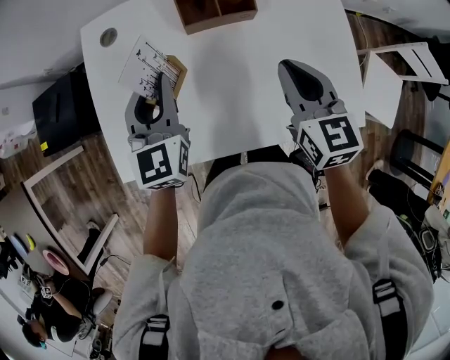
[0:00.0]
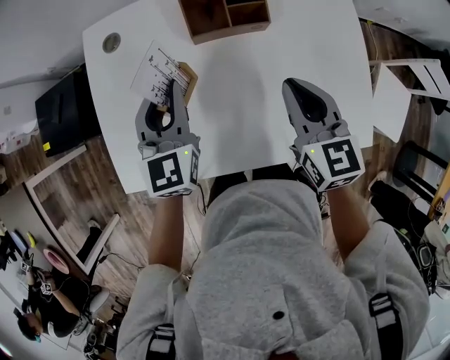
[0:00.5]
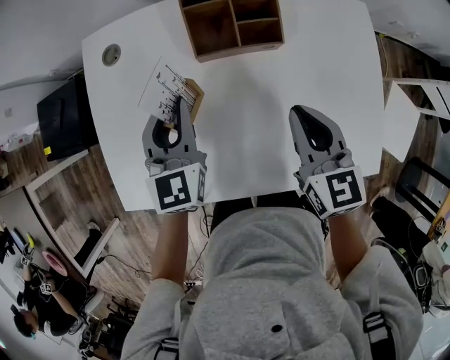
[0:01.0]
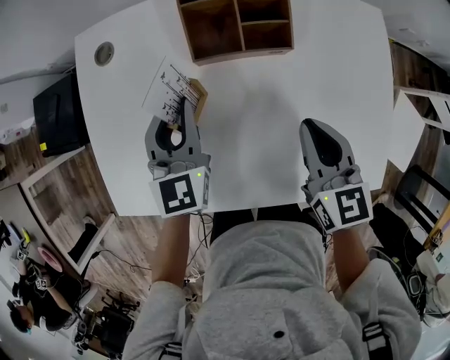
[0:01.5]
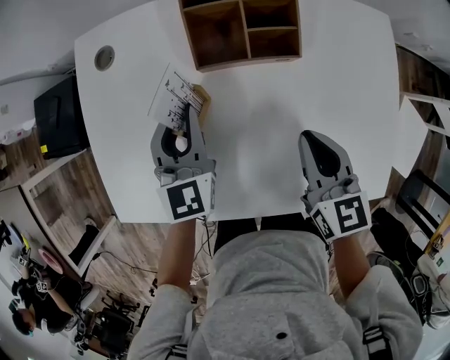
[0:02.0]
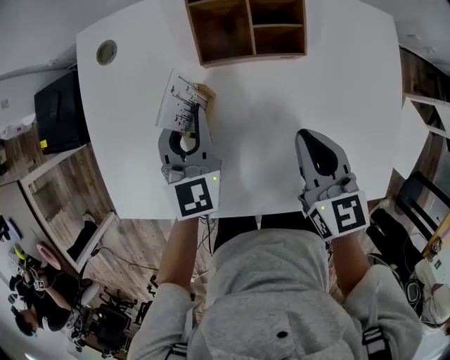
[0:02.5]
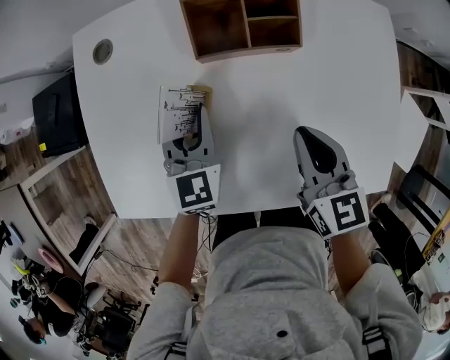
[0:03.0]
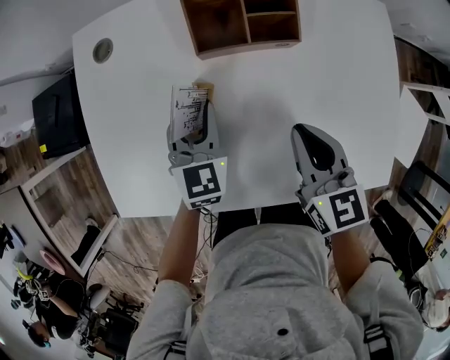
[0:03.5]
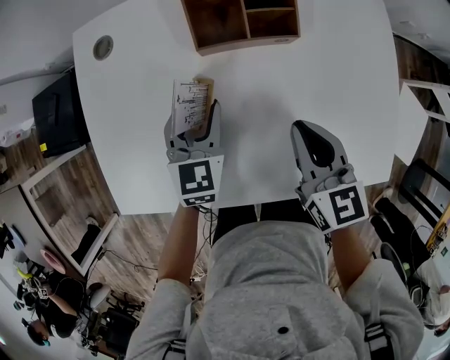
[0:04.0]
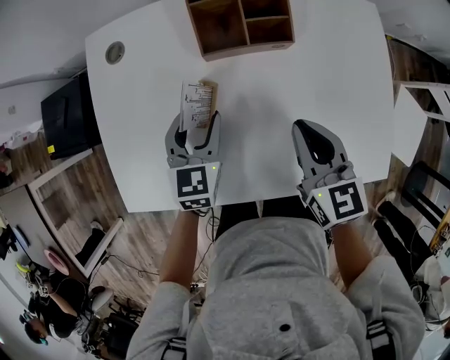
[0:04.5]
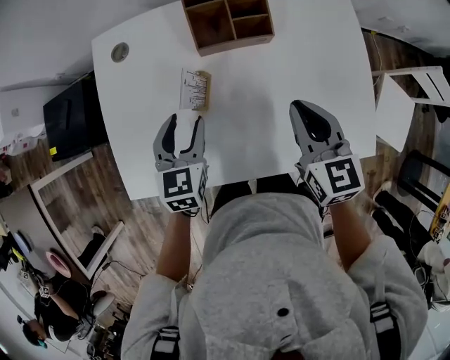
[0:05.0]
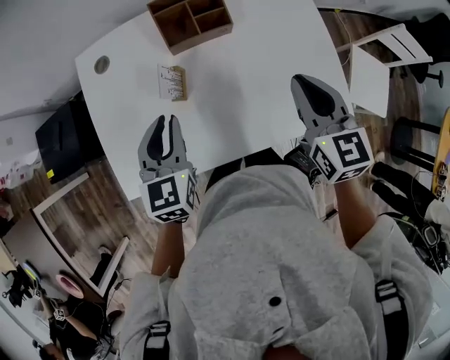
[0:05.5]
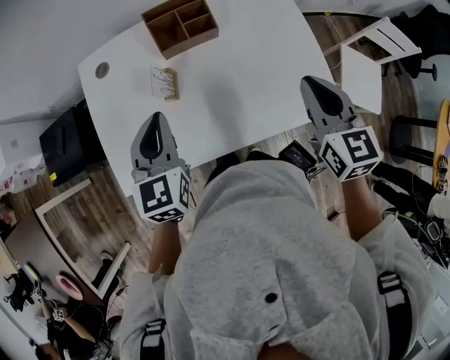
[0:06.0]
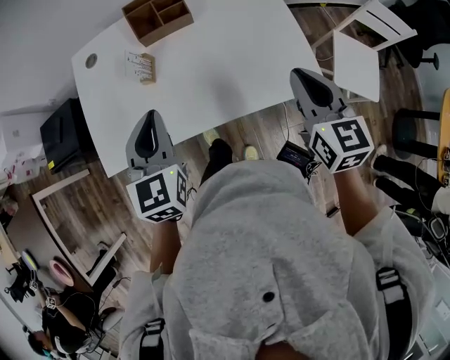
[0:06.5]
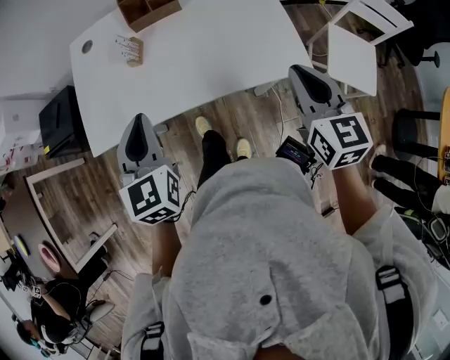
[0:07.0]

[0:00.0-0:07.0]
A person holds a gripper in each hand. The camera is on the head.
0:00.0 to 0:02.0: The right gripper travels downward by some 10 cm. The left gripper travels downward and forward by about 15 cm.
0:02.0 to 0:03.5: The left gripper heads downward, covering roughly 5 cm.
0:03.5 to 0:05.0: The right gripper goes approximately 10 cm upward. The left gripper is displaced backward and upward by some 10 cm, and opens its fingers.
0:05.0 to 0:07.0: The left gripper goes roughly 30 cm backward, upward and to the right, and closes; the right gripper travels backward and to the right by some 30 cm.

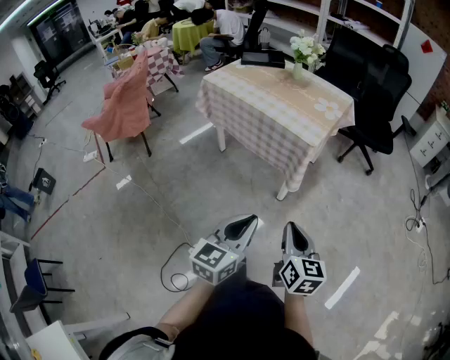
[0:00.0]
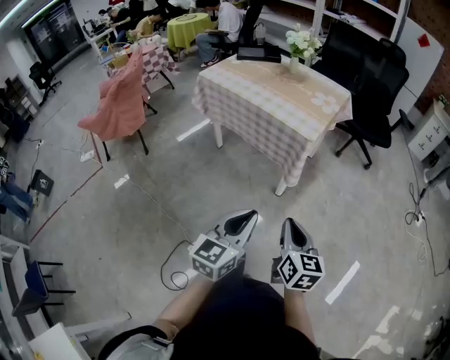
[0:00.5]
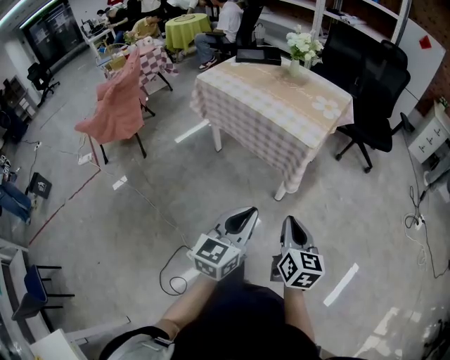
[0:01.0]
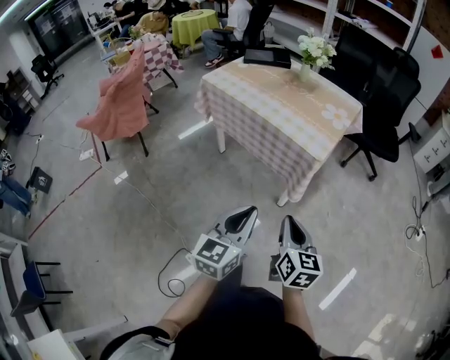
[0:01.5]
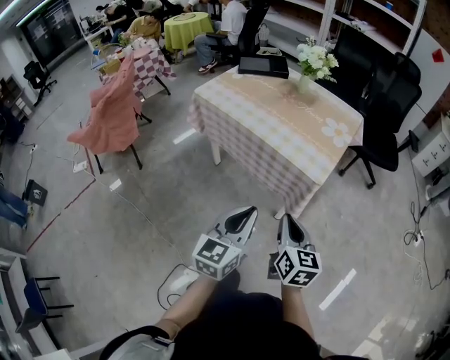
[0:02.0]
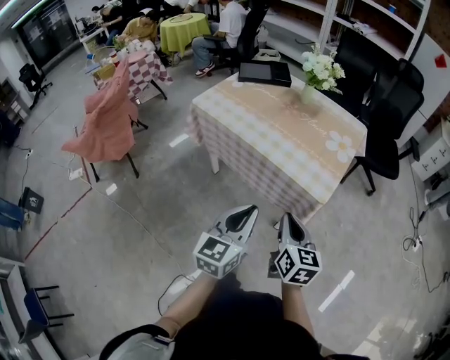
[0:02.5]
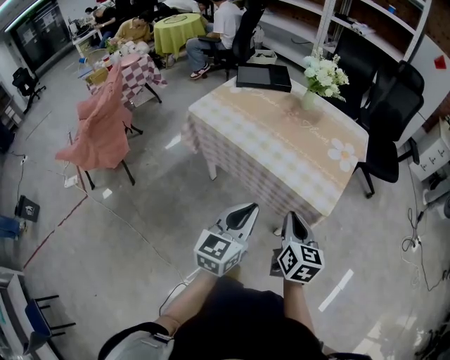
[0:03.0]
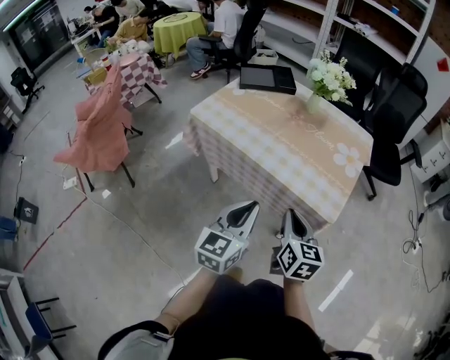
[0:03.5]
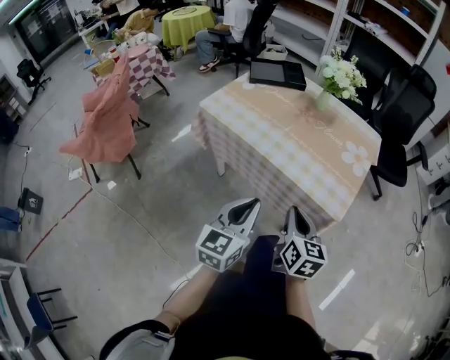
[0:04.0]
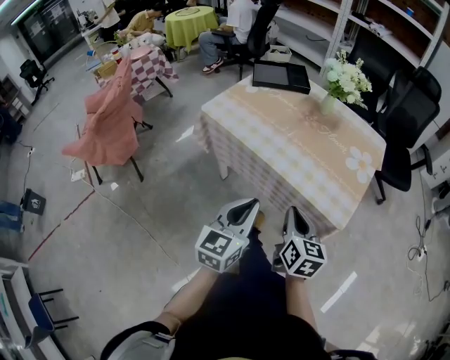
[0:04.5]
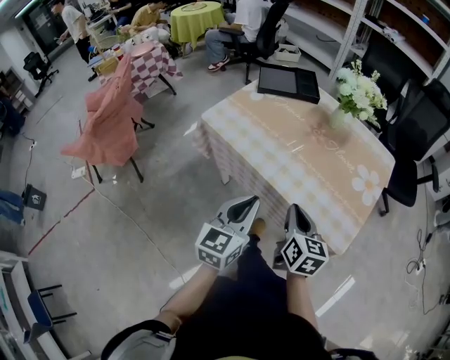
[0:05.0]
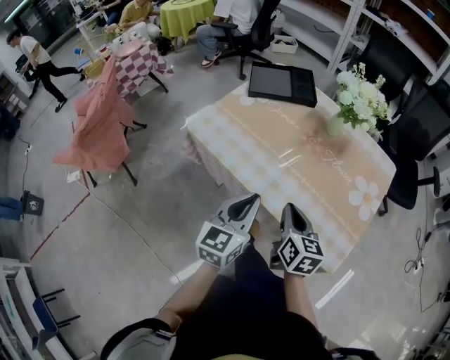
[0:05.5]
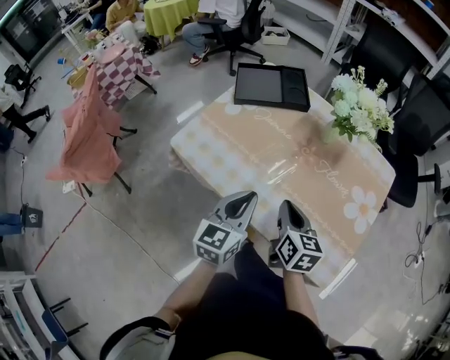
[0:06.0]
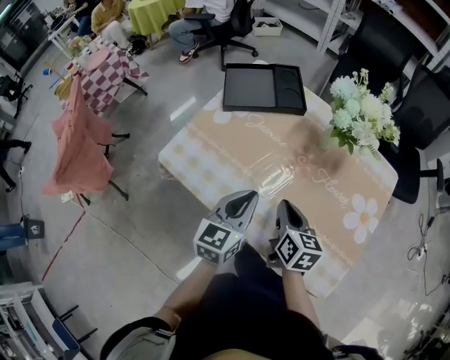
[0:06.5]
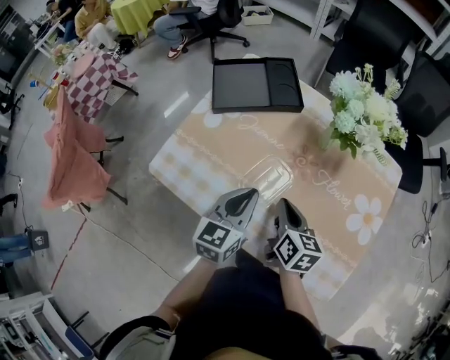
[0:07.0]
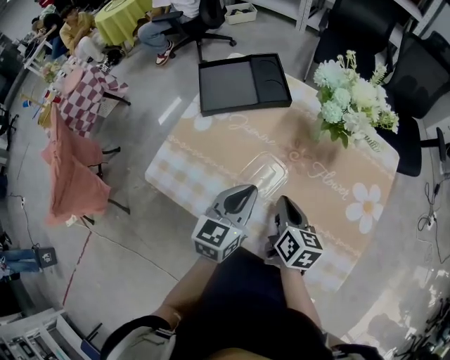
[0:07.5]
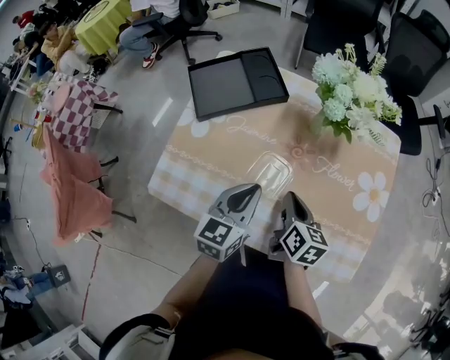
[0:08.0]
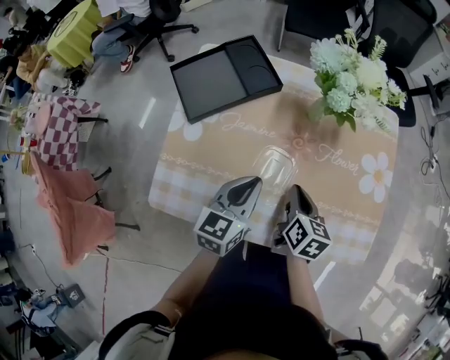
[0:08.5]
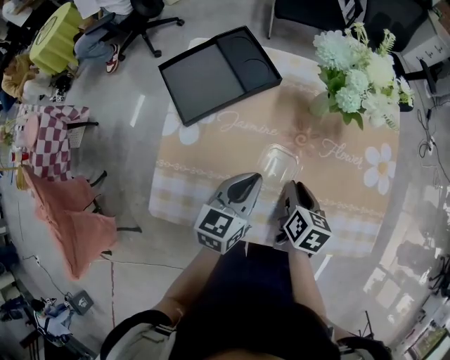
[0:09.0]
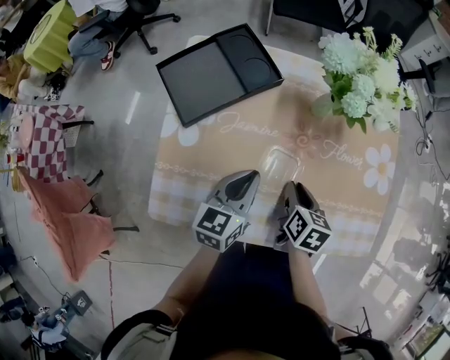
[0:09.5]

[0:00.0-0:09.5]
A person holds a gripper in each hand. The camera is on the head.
0:00.0 to 0:02.0: Both grippers travel together forward, some 20 cm.
0:02.0 to 0:04.0: Both grippers move forward and to the left, approximately 20 cm.
0:04.0 to 0:05.5: The grippers both shift forward by about 20 cm.
0:05.5 to 0:07.5: Both grippers travel together forward, roughly 20 cm.
0:07.5 to 0:09.5: The left gripper goes roughly 5 cm to the left. The right gripper travels downward by roughly 5 cm, and turns by approximately 30 degrees.

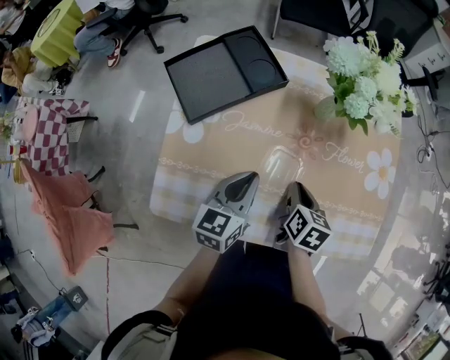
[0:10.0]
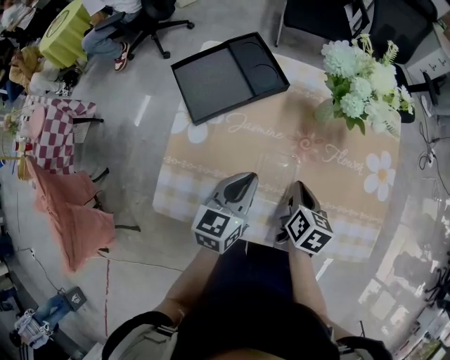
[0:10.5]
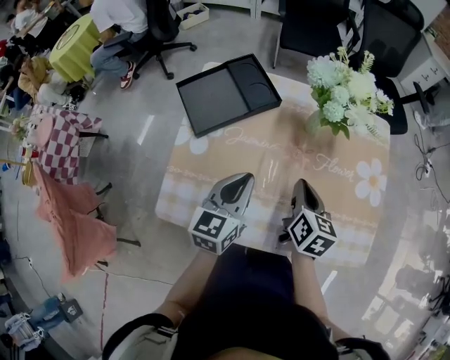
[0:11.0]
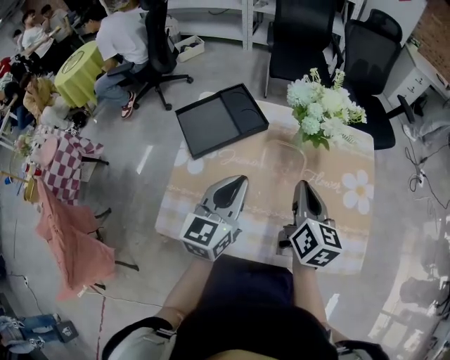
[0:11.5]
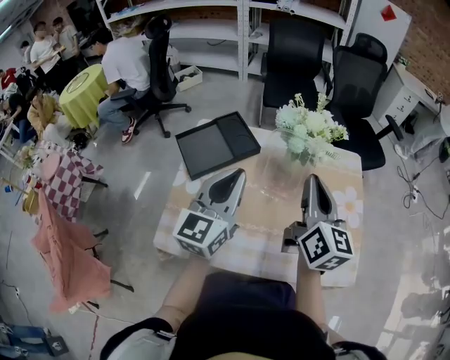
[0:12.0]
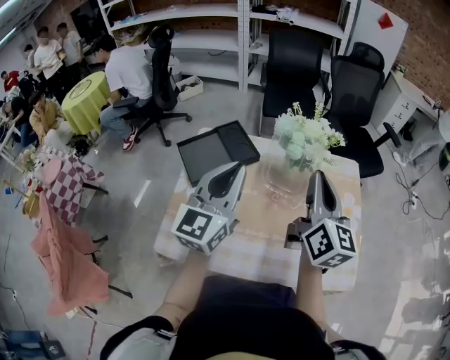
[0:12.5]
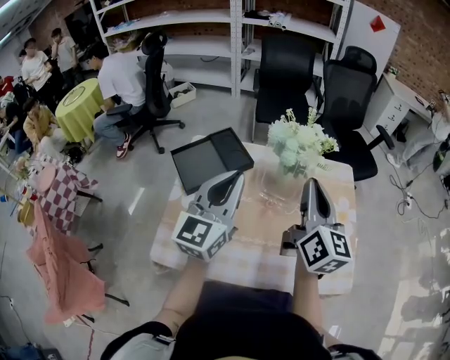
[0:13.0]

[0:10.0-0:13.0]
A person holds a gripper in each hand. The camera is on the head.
0:10.0 to 0:11.5: Both grippers travel together upward, some 15 cm. The right gripper tips its fingers upward by approximately 30 degrees.
0:11.5 to 0:13.0: Both grippers travel together upward, about 10 cm. The right gripper rotates some 20 degrees.

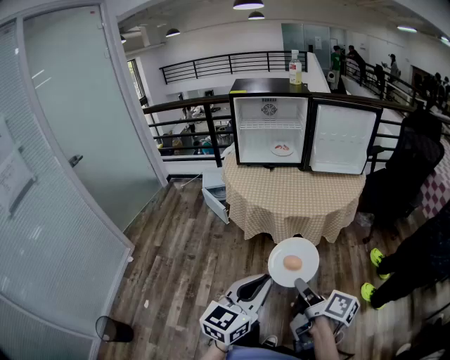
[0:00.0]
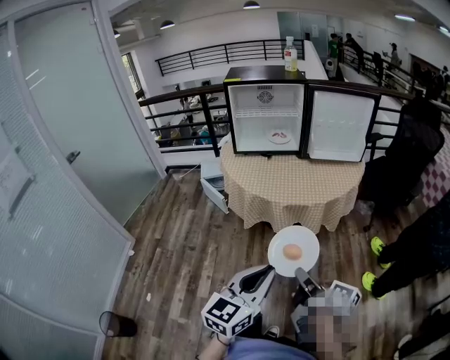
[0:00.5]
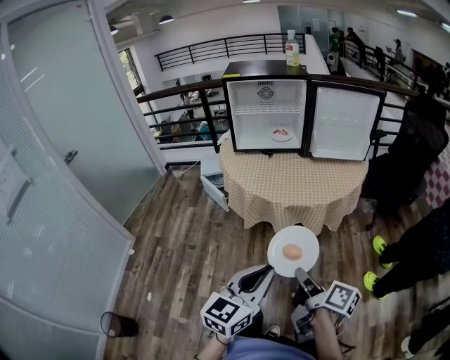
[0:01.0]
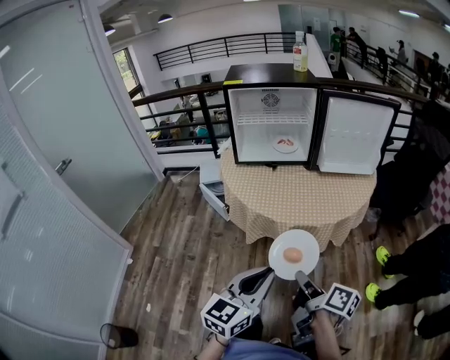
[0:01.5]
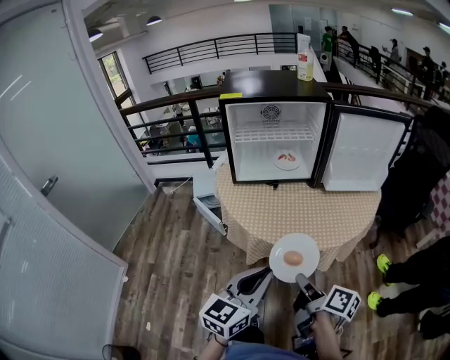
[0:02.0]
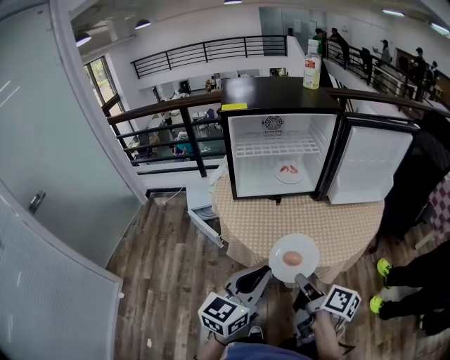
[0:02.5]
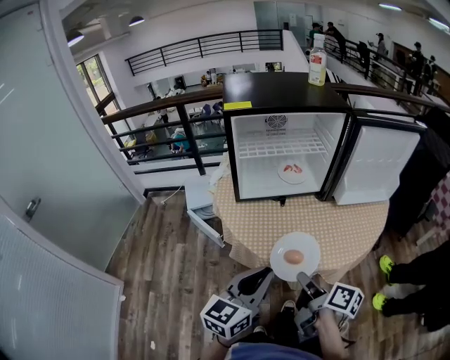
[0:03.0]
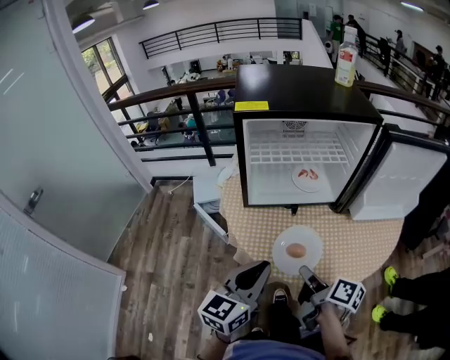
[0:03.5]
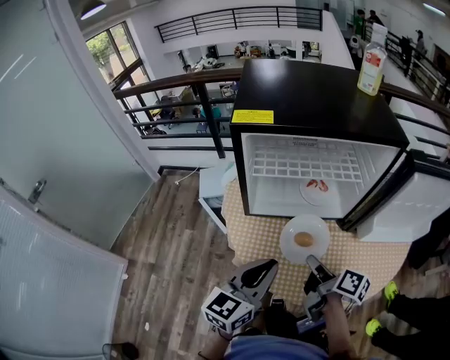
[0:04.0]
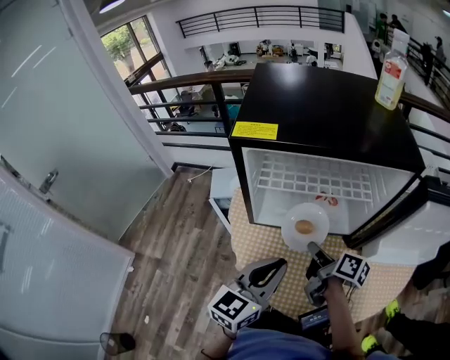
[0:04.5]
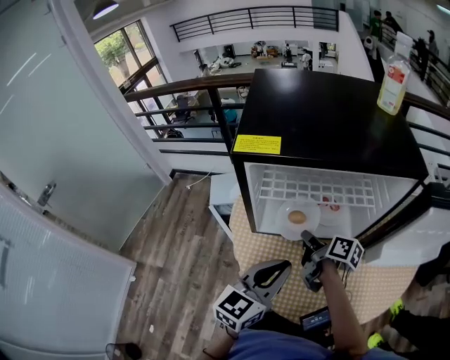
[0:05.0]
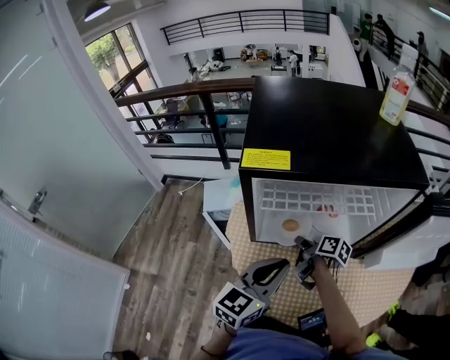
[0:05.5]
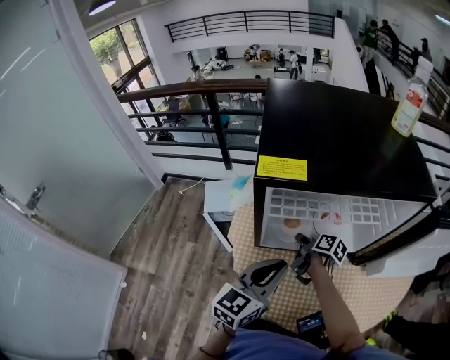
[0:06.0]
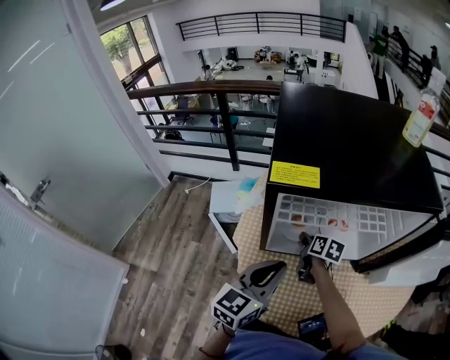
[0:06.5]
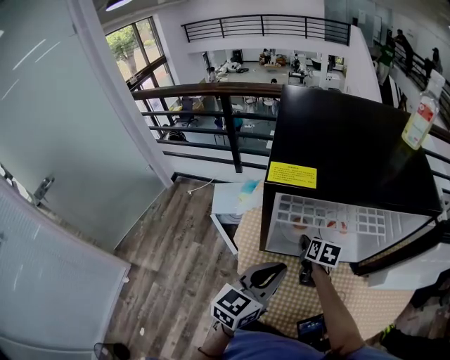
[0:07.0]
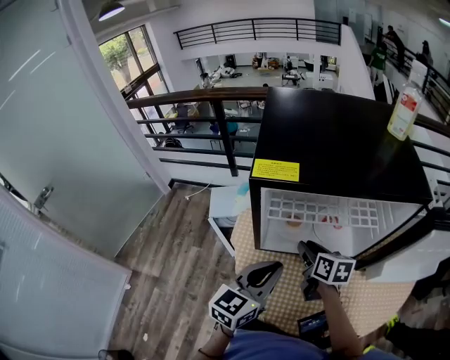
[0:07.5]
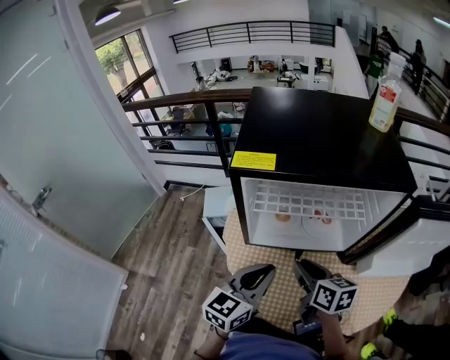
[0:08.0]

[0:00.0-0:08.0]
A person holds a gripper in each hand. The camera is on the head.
0:00.0 to 0:02.0: The grippers both shift forward by approximately 25 cm.
0:02.0 to 0:04.0: Both grippers move forward, roughly 30 cm.
0:04.0 to 0:06.0: The left gripper shifts roughly 10 cm forward. The right gripper shifts roughly 25 cm forward and downward.
0:06.0 to 0:08.0: The right gripper goes about 20 cm backward and upward, and turns by about 40 degrees.
